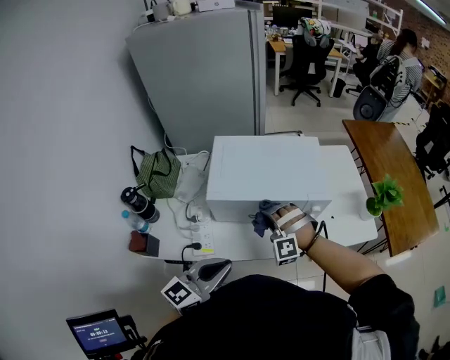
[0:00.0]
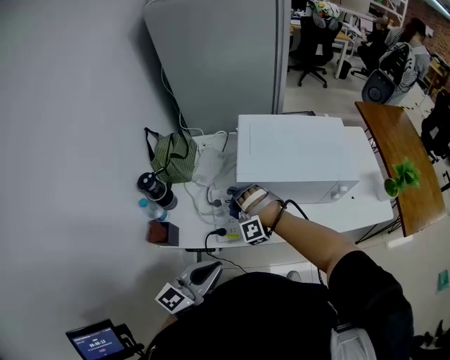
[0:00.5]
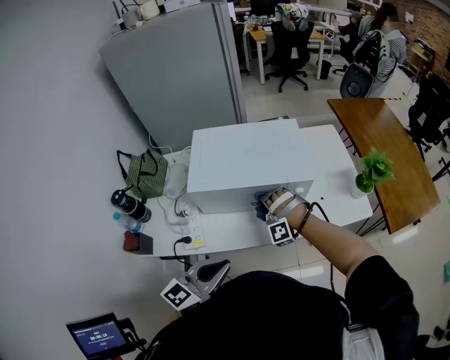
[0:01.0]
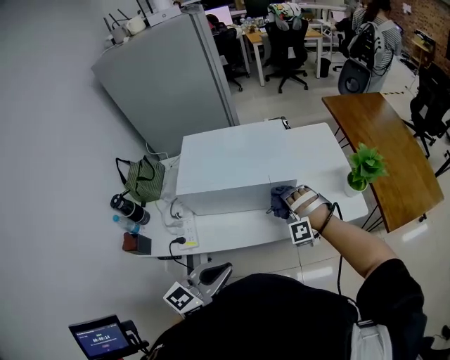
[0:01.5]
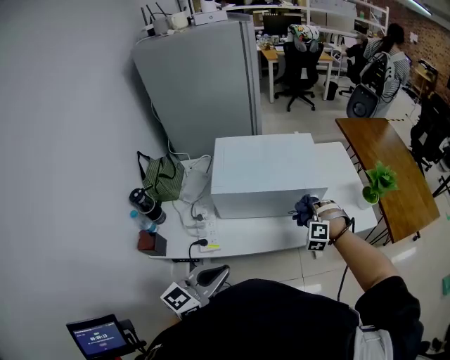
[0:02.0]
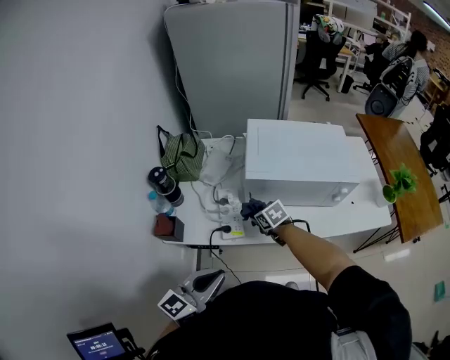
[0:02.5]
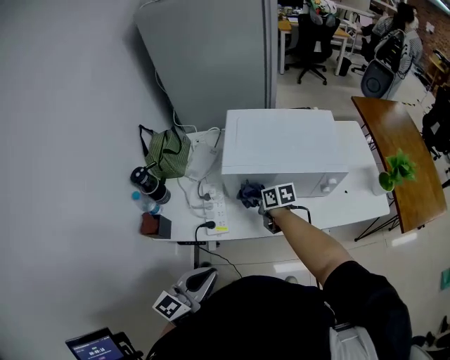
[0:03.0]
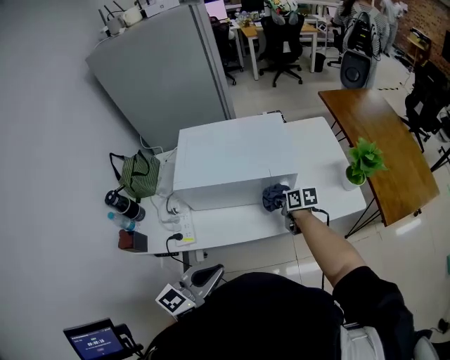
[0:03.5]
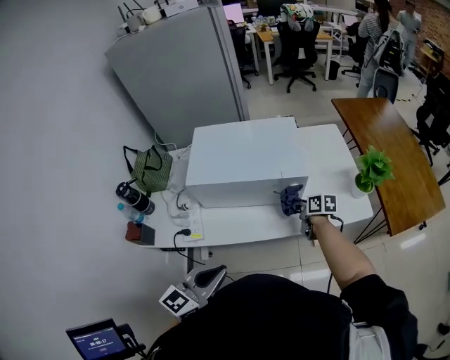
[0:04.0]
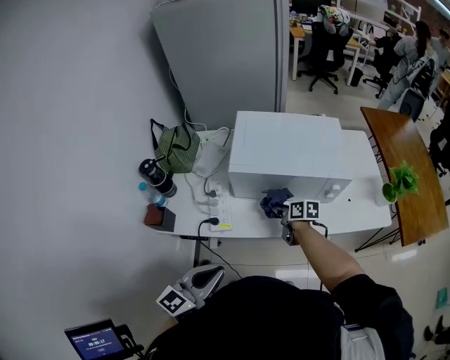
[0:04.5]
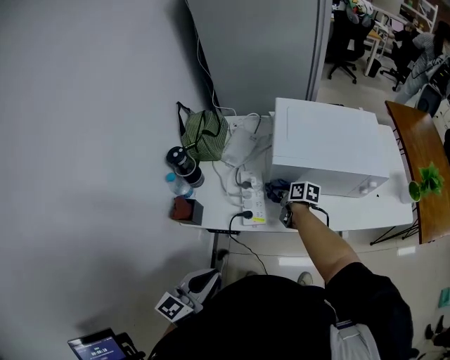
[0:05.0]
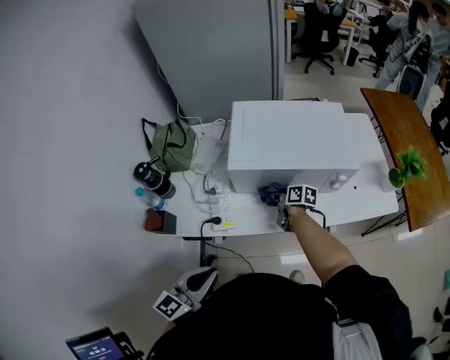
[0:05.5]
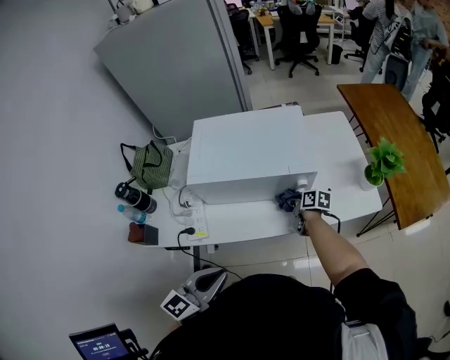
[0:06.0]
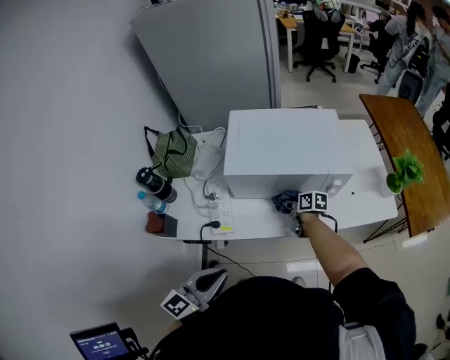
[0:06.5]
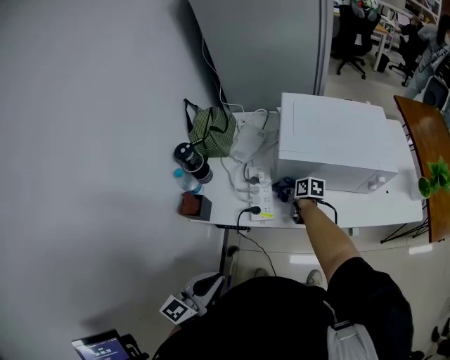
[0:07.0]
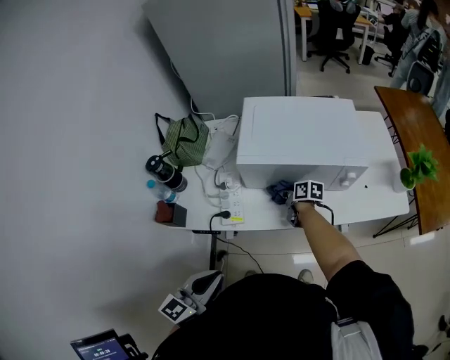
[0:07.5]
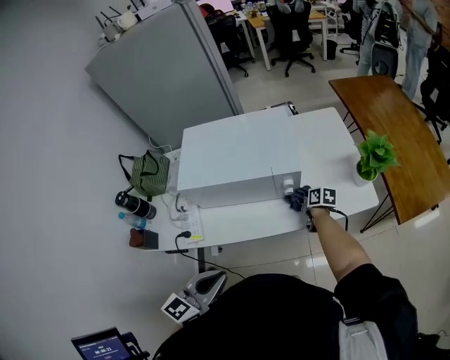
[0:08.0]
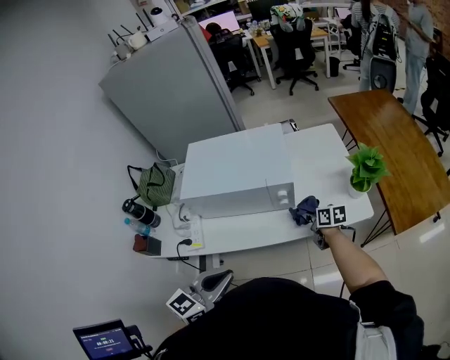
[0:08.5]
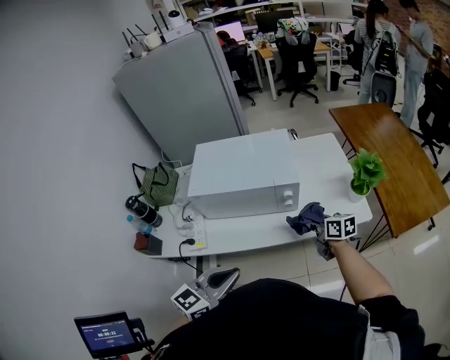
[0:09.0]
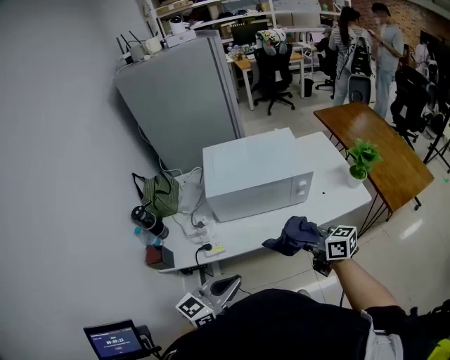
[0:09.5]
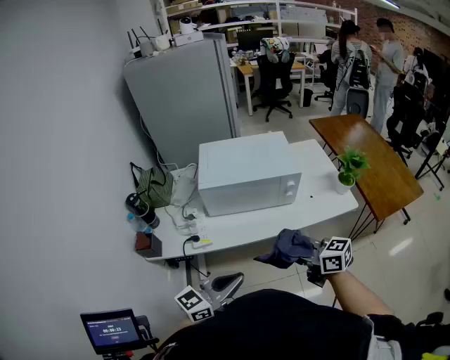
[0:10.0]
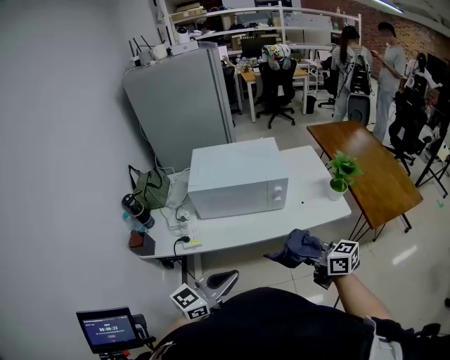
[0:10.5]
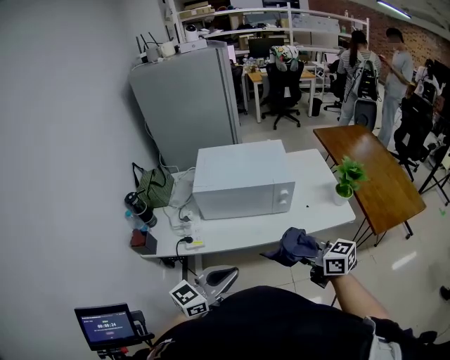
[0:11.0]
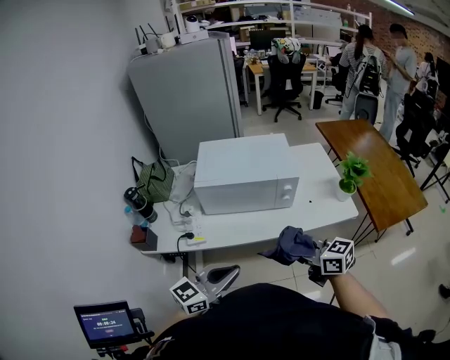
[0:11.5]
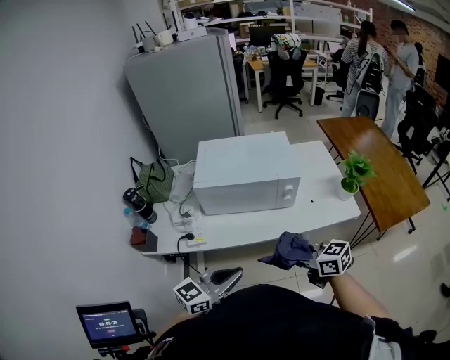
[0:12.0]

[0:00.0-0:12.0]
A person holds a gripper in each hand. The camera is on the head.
0:00.0 to 0:02.0: The right gripper travels to the right by roughly 15 cm, and swivels about 30 degrees. The left gripper swings left and right, roughly 25 cm each way, with 2 reversals.
0:02.0 to 0:04.0: The right gripper goes roughly 5 cm downward, and rotates around the line of its fingers by about 110 degrees, clockwise from behind; the left gripper ends up about 10 cm from where it was.
0:04.0 to 0:06.0: The left gripper moves some 25 cm to the left and comes back, while the right gripper is displaced downward by some 5 cm, and travels to the left and back again, roughly 35 cm each way.
0:06.0 to 0:08.0: The right gripper moves approximately 30 cm to the left and comes back. Meanwhile the left gripper travels to the left and back again, approximately 25 cm each way.
0:08.0 to 0:10.0: The left gripper moves left and right over some 15 cm, changing direction 2 times, and turns by approximately 20 degrees; the right gripper moves backward, upward and to the left, some 40 cm, and angles its fingers upward, by approximately 30 degrees.
0:10.0 to 0:12.0: The left gripper ends up some 5 cm from where it was.

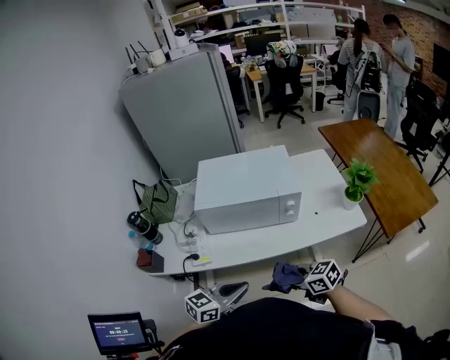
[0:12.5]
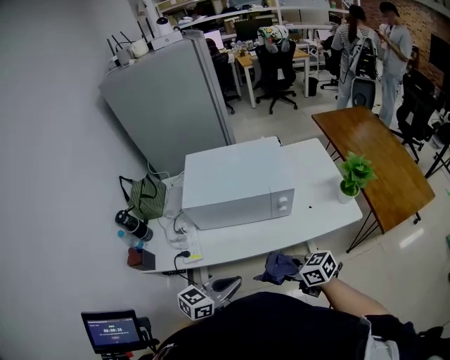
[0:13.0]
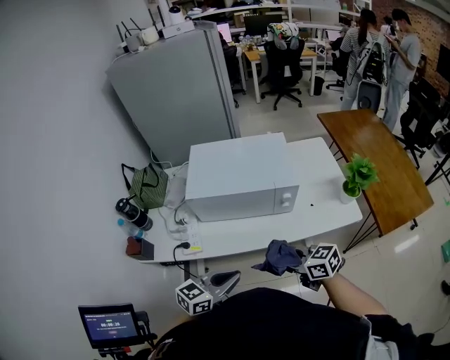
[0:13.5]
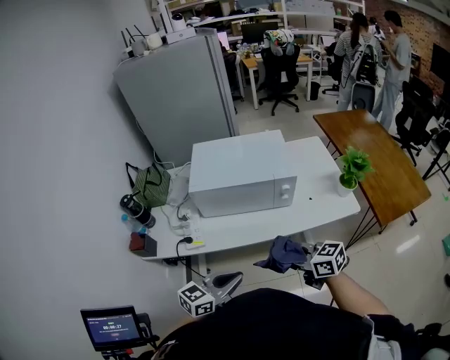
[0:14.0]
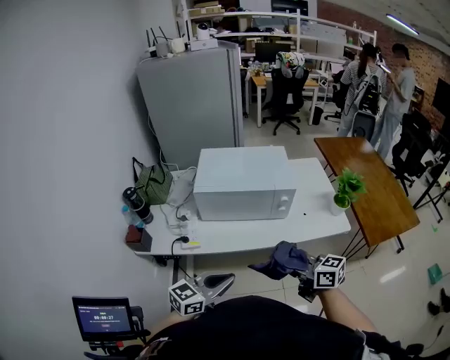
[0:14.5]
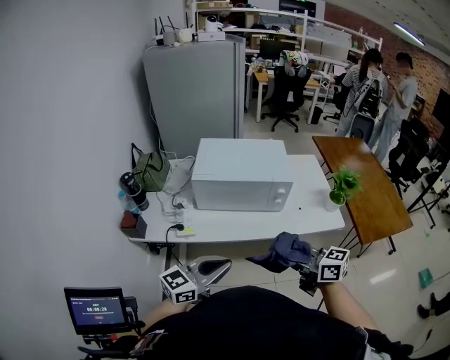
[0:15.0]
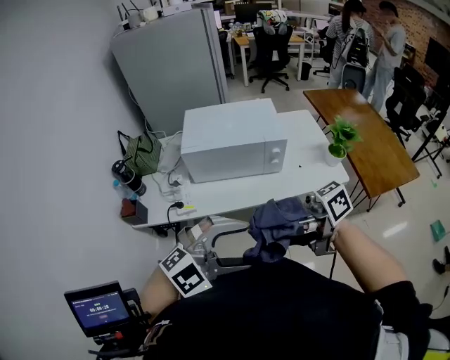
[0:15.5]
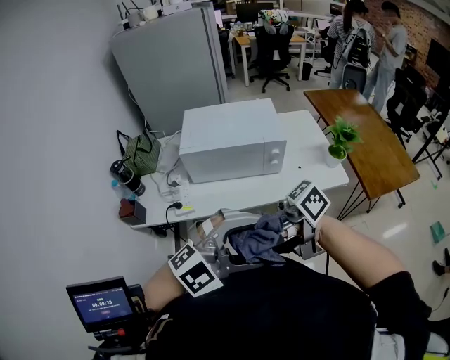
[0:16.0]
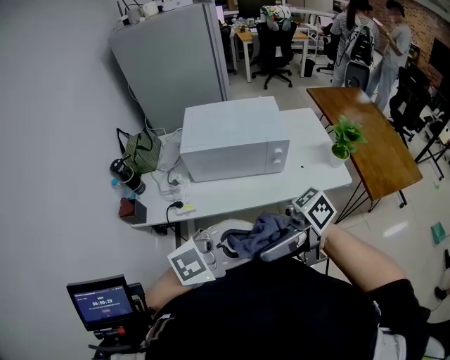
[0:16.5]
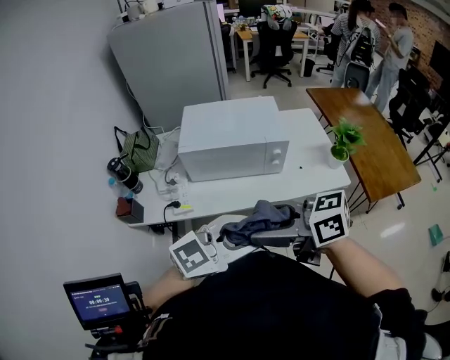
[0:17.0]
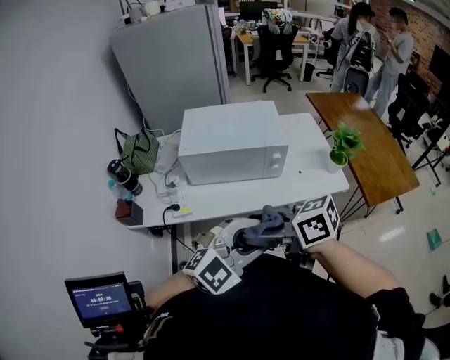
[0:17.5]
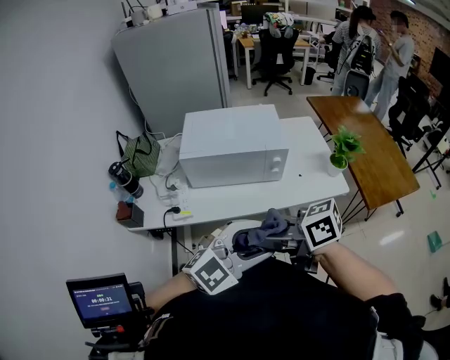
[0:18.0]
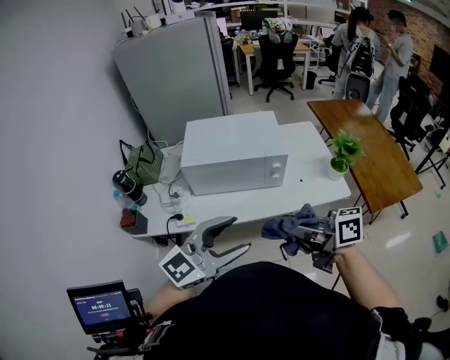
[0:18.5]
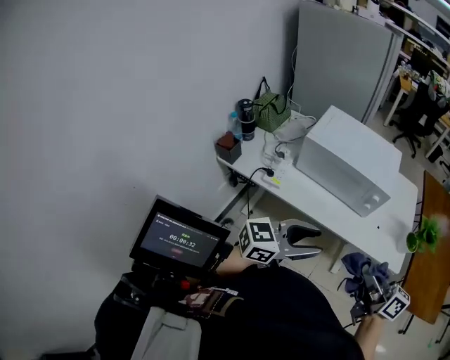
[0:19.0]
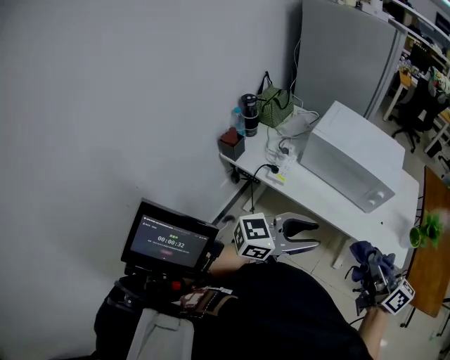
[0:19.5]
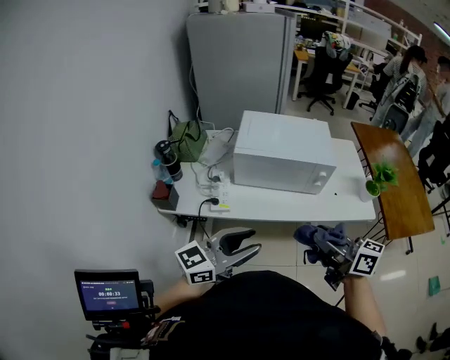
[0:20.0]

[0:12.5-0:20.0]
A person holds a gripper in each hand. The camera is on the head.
0:12.5 to 0:14.5: The right gripper moves upward, approximately 10 cm, and rotates about 20 degrees.
0:14.5 to 0:16.5: The right gripper ends up roughly 20 cm from where it was, changes its angle by approximately 60 degrees, and opens up. The left gripper shifts approximately 15 cm upward, turns by some 50 degrees, and opens up.
0:16.5 to 0:18.0: The left gripper ends up roughly 5 cm from where it was. The right gripper ends up some 5 cm from where it was, rotates about 30 degrees, and closes.
0:18.0 to 0:20.0: The right gripper turns by about 20 degrees. Meanwhile the left gripper shifts by approximately 15 cm, and rotates approximately 50 degrees.

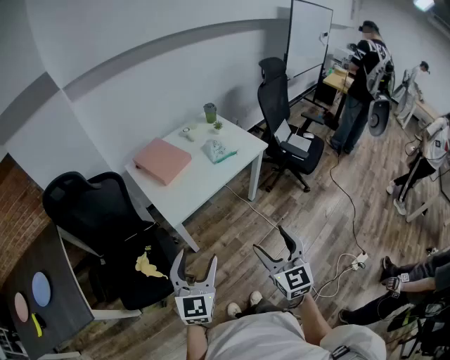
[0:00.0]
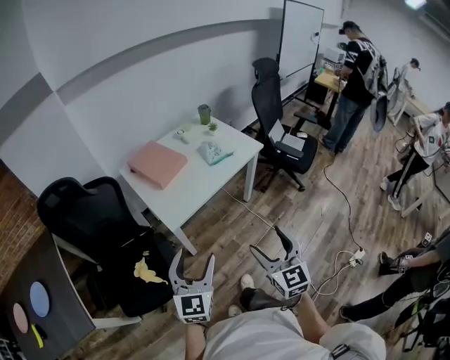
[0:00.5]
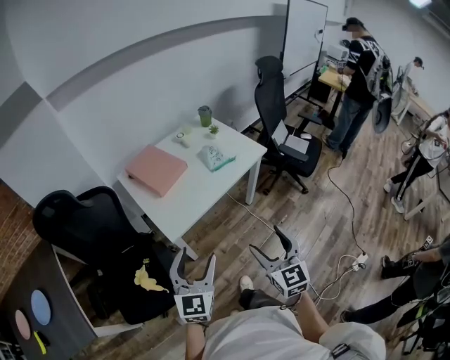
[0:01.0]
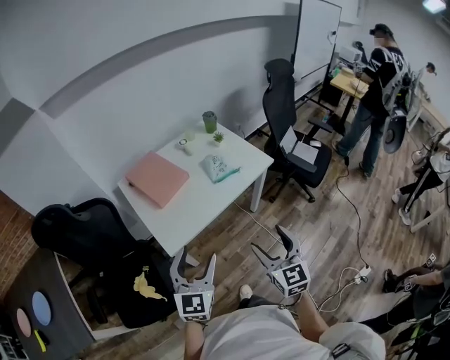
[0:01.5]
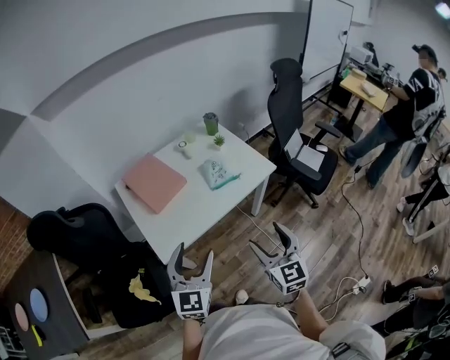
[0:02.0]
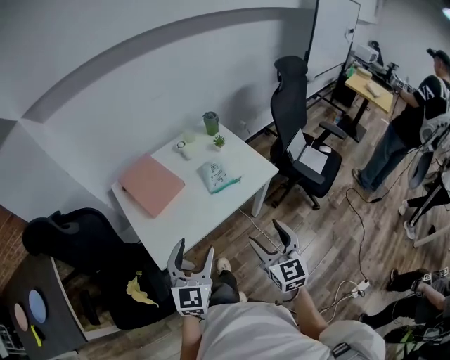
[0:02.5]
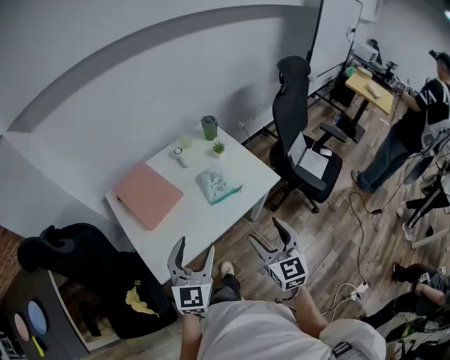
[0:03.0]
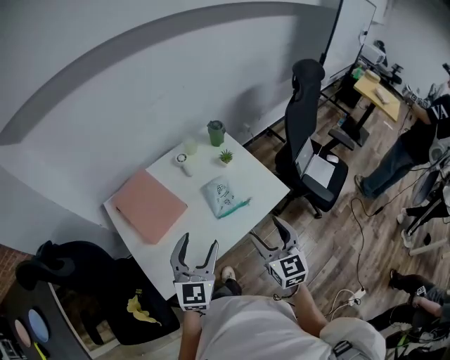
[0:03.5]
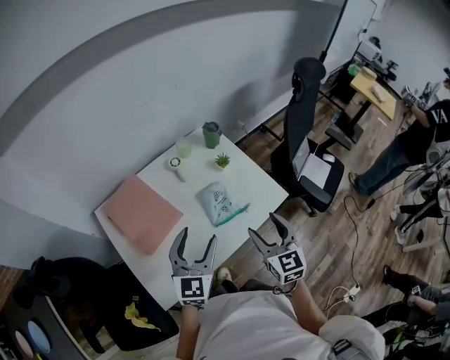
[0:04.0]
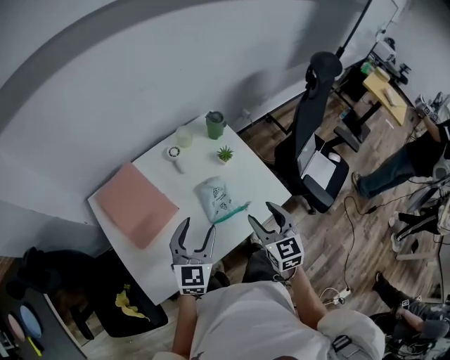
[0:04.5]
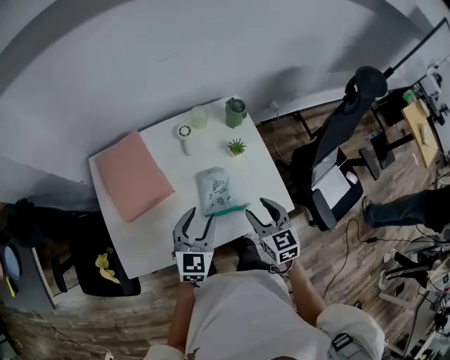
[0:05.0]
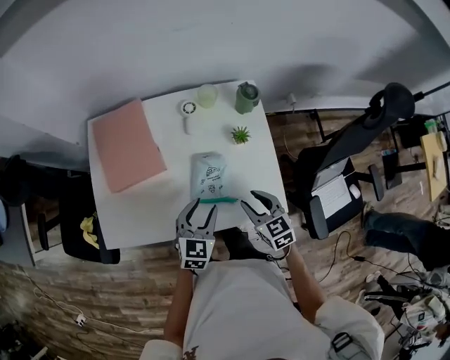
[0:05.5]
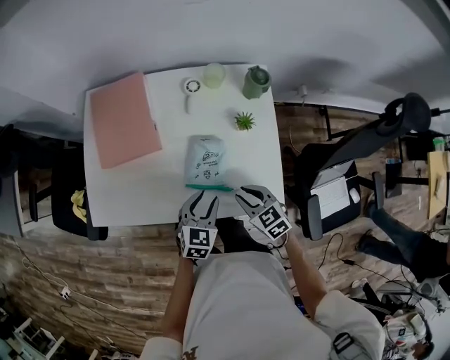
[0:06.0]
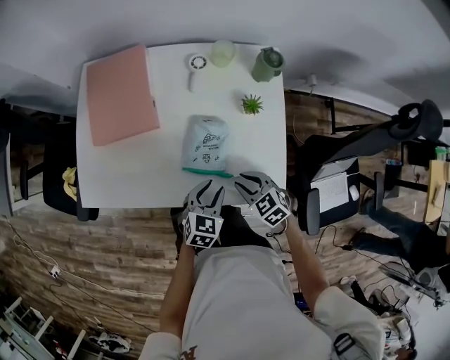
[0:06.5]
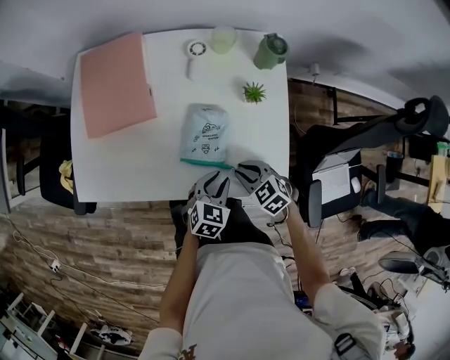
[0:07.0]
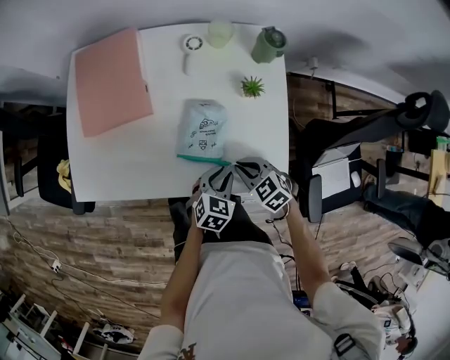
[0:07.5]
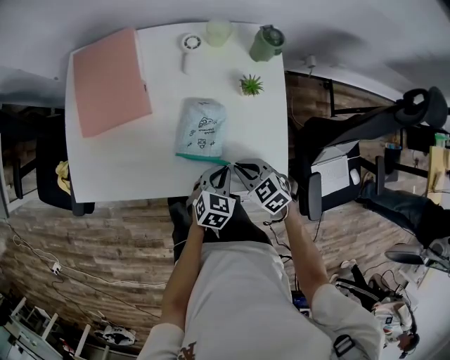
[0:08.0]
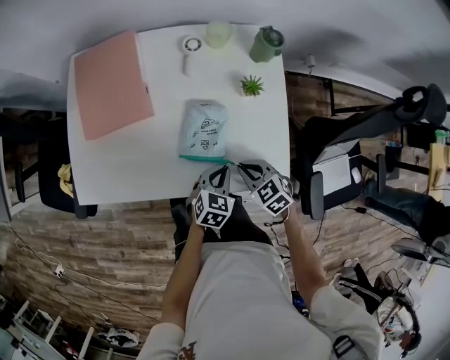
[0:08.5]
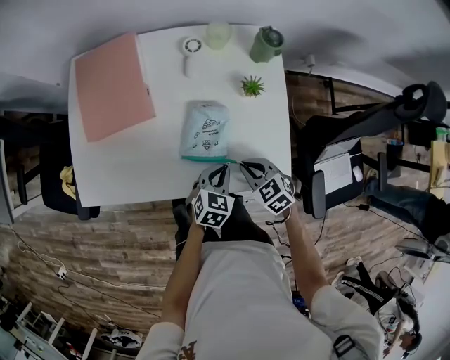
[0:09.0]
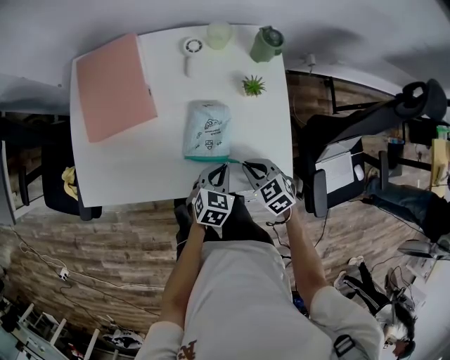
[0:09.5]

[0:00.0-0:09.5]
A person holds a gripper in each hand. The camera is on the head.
0:00.0 to 0:02.0: The grippers both shift forward by some 25 cm.
0:02.0 to 0:04.0: The grippers both shift forward by approximately 30 cm.
0:04.0 to 0:05.5: The grippers both shift downward by roughly 15 cm. The left gripper swivels about 30 degrees, and closes its fingers. The right gripper rotates approximately 50 degrees, and closes.
0:05.5 to 0:07.5: The left gripper moves downward and to the right, approximately 15 cm. Meanwhile the right gripper goes some 10 cm downward, changes its angle by some 30 degrees, and closes its fingers.
0:07.5 to 0:09.5: The grippers make only small movements.
